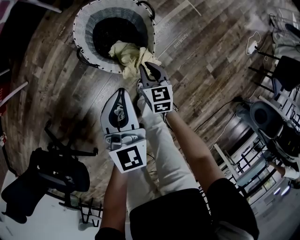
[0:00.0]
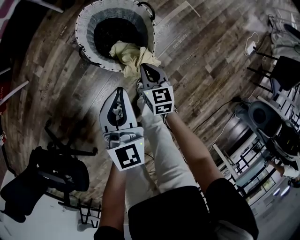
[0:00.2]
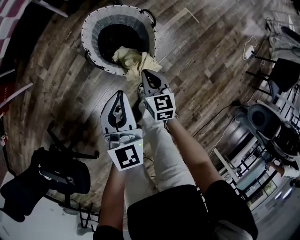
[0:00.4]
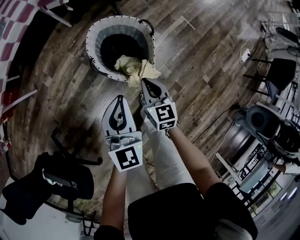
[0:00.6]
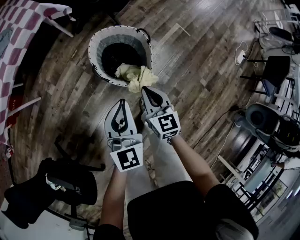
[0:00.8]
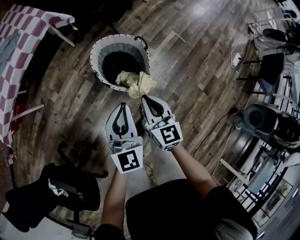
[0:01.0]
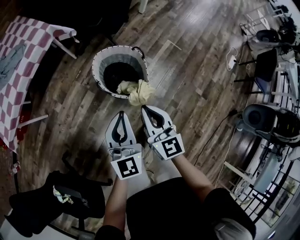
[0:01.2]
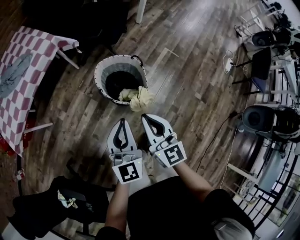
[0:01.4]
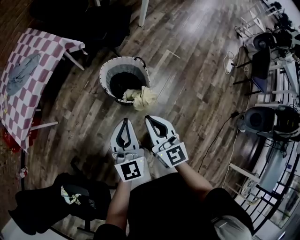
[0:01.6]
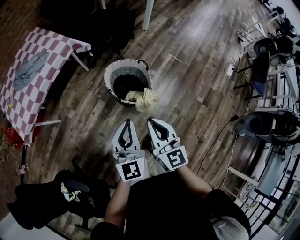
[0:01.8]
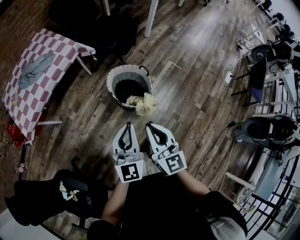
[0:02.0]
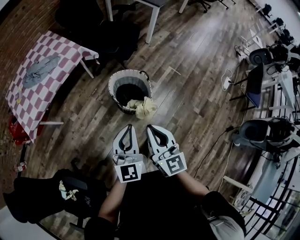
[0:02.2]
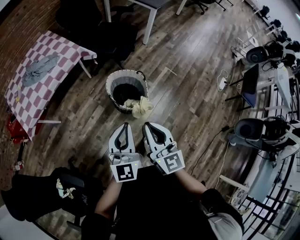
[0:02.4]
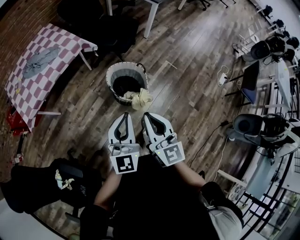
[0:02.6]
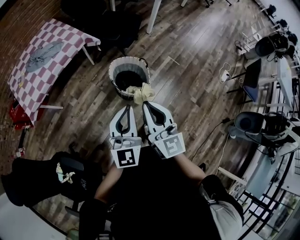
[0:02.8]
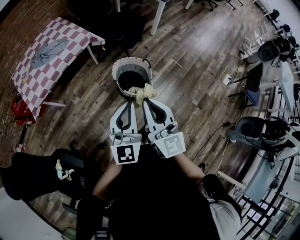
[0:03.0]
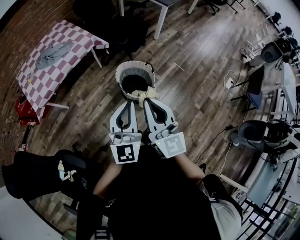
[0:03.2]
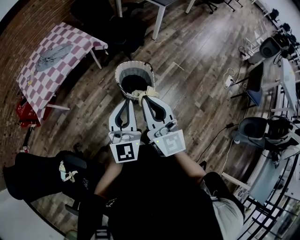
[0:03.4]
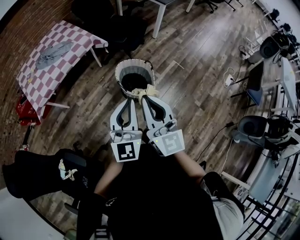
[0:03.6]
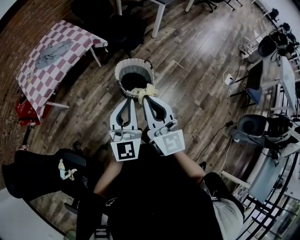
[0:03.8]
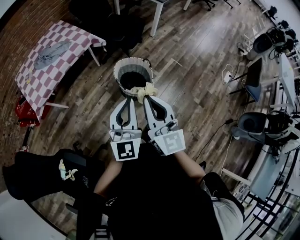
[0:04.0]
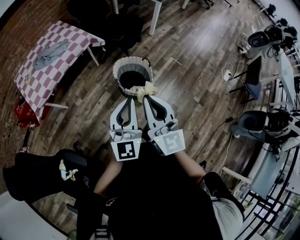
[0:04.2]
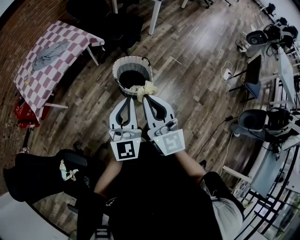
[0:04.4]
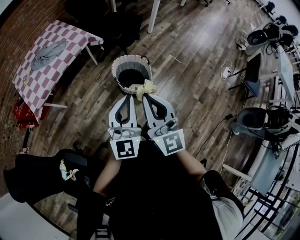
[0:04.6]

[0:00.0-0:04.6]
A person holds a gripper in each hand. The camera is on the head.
0:00.0 to 0:01.6: The left gripper travels upward and backward by roughly 25 cm, while the right gripper goes roughly 40 cm upward, and points its fingers roughly 30 degrees further upward.
0:01.6 to 0:03.0: Both grippers travel together upward, some 20 cm.
0:03.0 to 0:04.6: The grippers make only small movements.

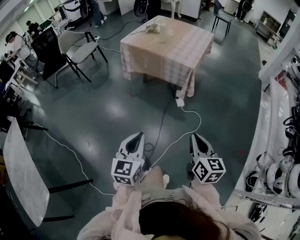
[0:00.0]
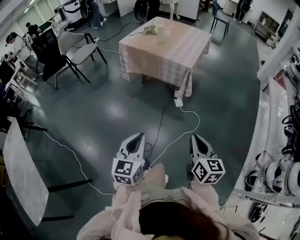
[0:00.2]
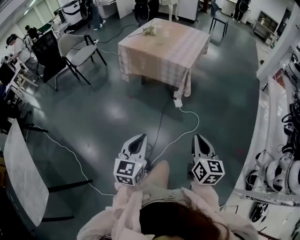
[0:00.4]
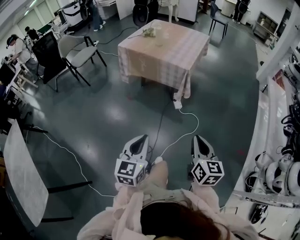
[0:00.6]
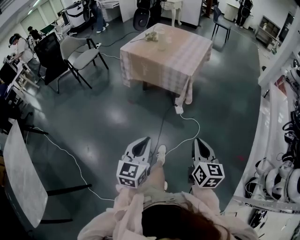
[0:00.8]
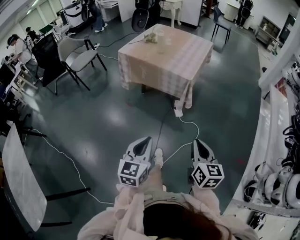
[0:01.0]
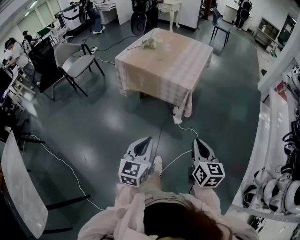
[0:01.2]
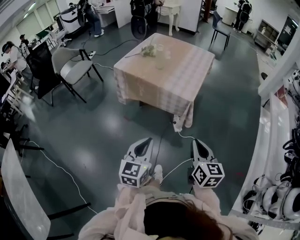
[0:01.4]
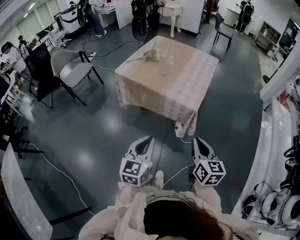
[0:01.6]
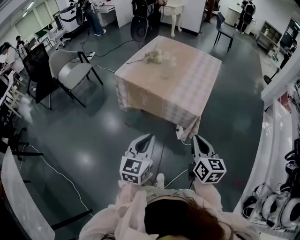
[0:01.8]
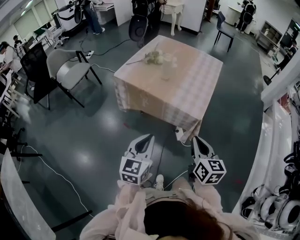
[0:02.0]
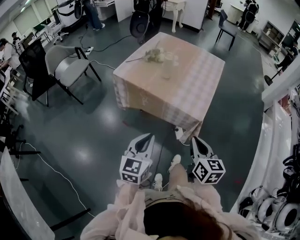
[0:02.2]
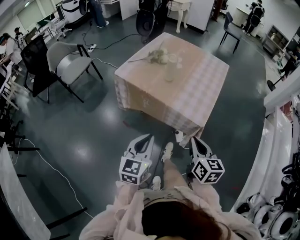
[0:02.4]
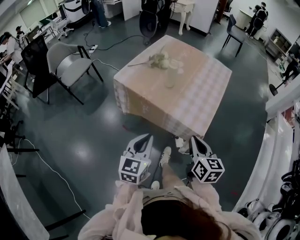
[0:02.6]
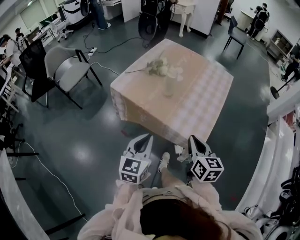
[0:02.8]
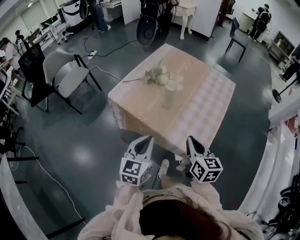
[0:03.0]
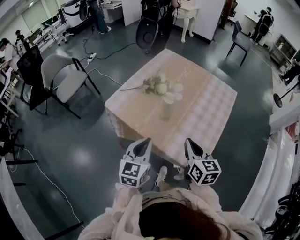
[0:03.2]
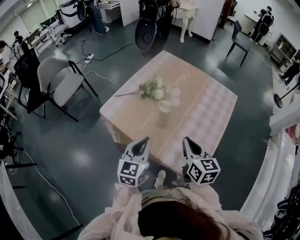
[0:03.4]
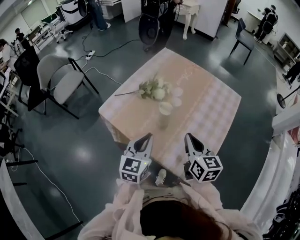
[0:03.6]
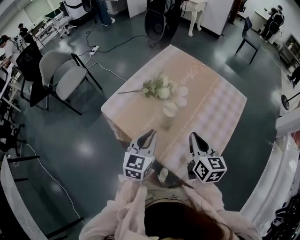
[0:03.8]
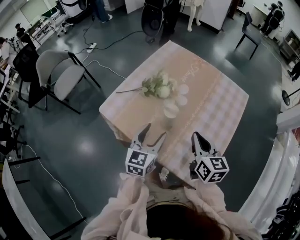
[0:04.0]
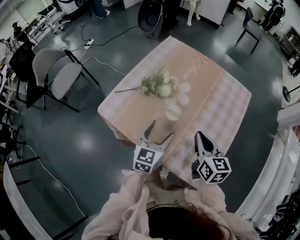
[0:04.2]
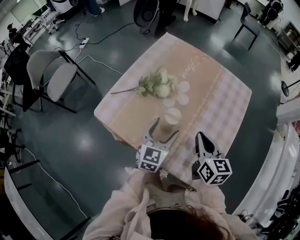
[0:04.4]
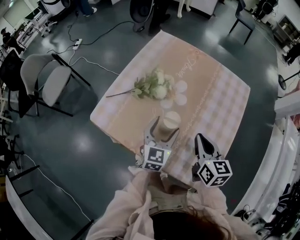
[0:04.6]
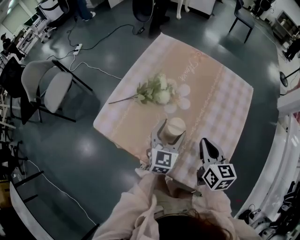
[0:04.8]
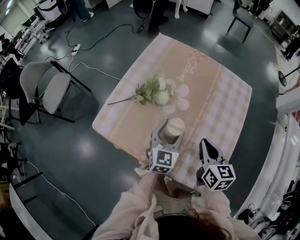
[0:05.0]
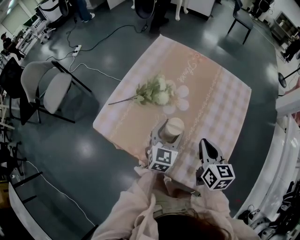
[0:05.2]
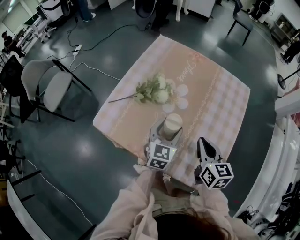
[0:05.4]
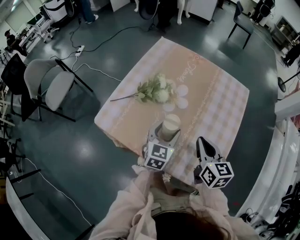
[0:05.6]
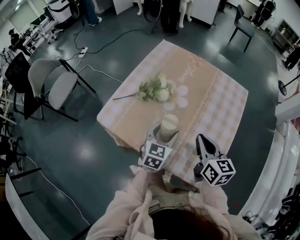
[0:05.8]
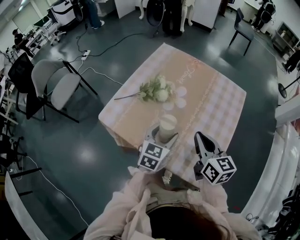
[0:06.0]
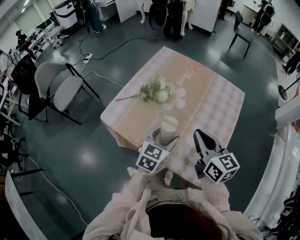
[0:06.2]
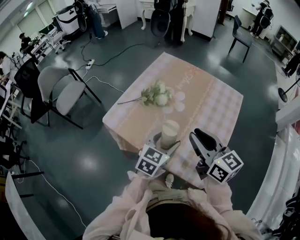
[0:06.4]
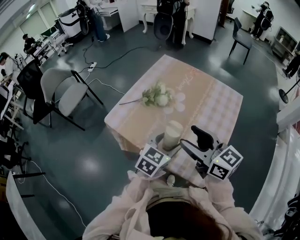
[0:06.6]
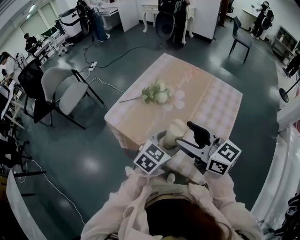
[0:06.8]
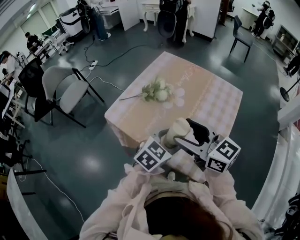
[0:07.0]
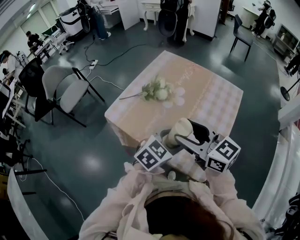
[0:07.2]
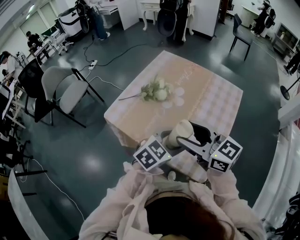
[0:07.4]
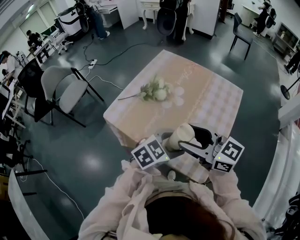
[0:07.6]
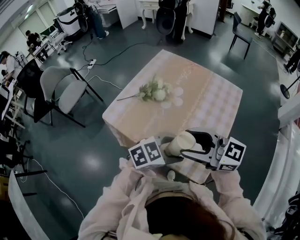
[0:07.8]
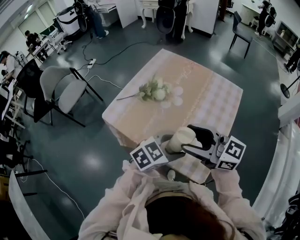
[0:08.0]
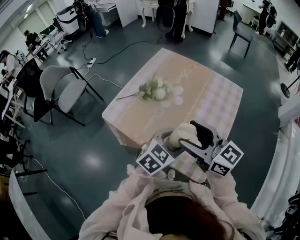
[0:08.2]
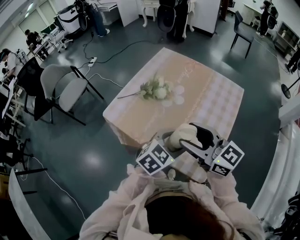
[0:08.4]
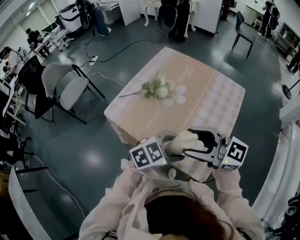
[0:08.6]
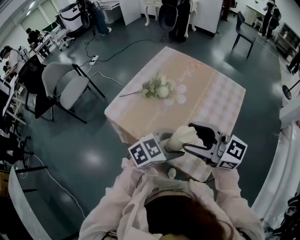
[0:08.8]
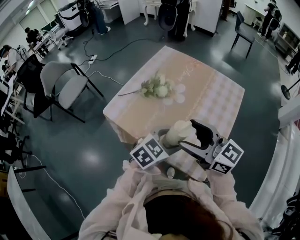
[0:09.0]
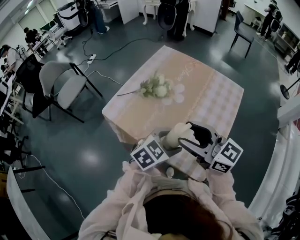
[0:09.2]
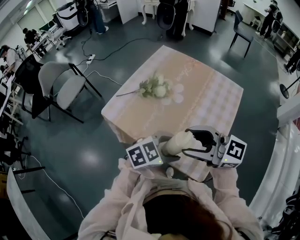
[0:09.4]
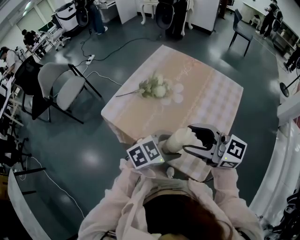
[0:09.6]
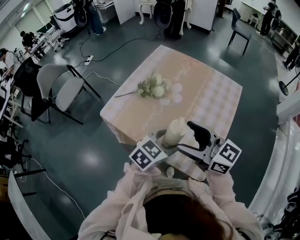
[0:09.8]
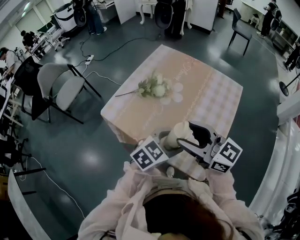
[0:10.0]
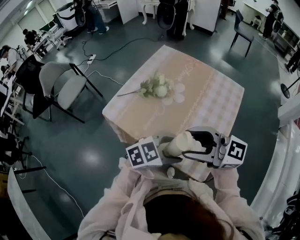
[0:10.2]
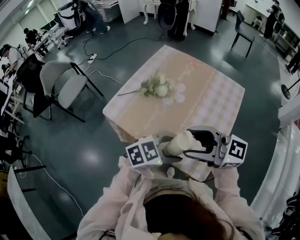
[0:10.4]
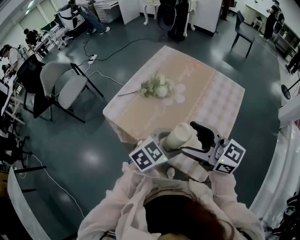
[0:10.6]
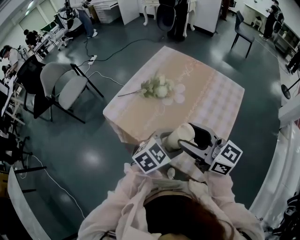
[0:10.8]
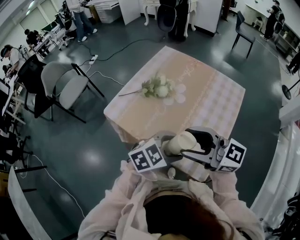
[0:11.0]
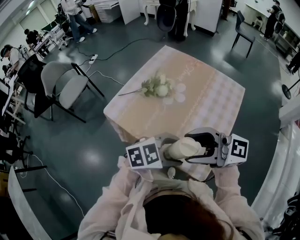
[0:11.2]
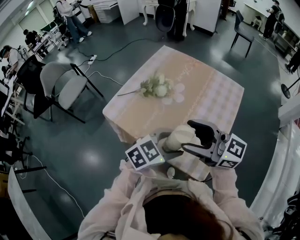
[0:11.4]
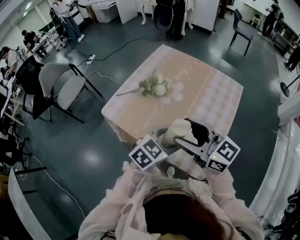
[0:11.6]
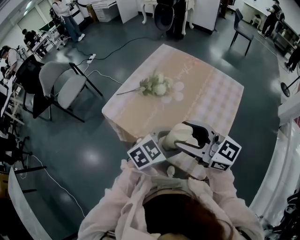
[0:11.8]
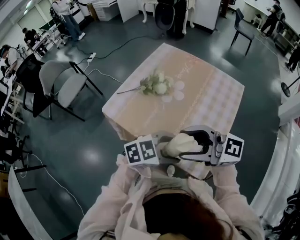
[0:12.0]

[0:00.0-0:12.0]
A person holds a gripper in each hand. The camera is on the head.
0:00.0 to 0:01.6: Both grippers travel together forward, about 30 cm.
0:01.6 to 0:03.0: Both grippers move forward, some 35 cm.
0:03.0 to 0:04.4: Both grippers move forward, approximately 25 cm. The left gripper opens up.
0:04.4 to 0:06.0: The right gripper changes place by some 5 cm.
0:06.0 to 0:07.6: The left gripper ends up roughly 15 cm from where it was, and swivels approximately 30 degrees. The right gripper moves upward, approximately 10 cm, rotates roughly 40 degrees, and opens.
0:07.6 to 0:09.0: The grippers make only small movements.
0:09.0 to 0:10.4: The right gripper turns by some 20 degrees. Meanwhile the left gripper shifts by about 5 cm, and rotates roughly 20 degrees.

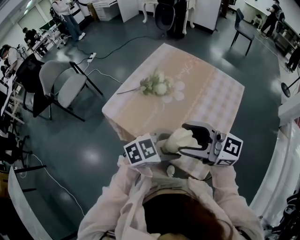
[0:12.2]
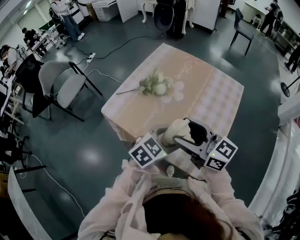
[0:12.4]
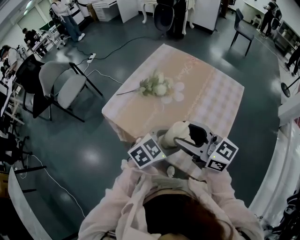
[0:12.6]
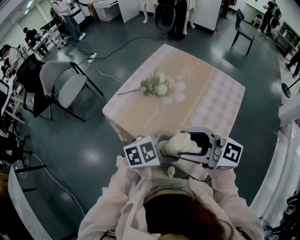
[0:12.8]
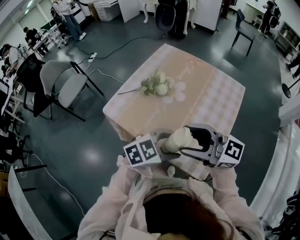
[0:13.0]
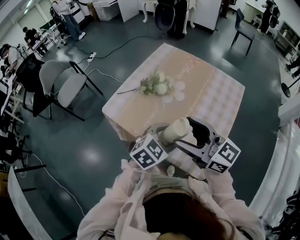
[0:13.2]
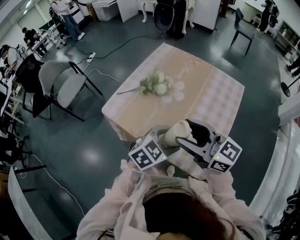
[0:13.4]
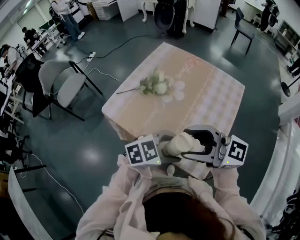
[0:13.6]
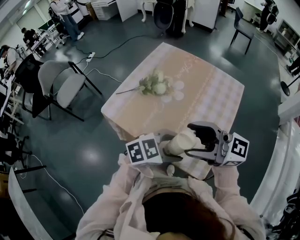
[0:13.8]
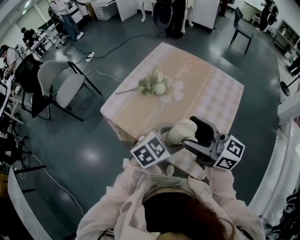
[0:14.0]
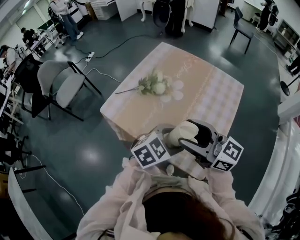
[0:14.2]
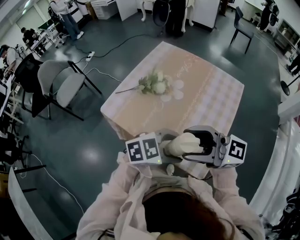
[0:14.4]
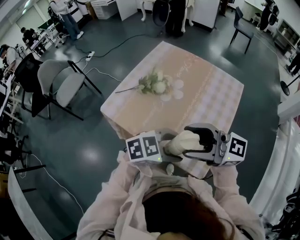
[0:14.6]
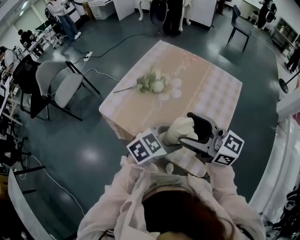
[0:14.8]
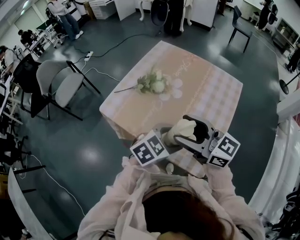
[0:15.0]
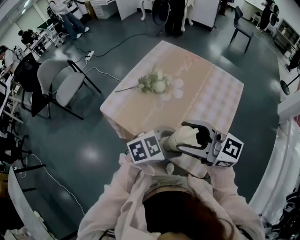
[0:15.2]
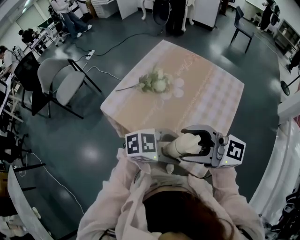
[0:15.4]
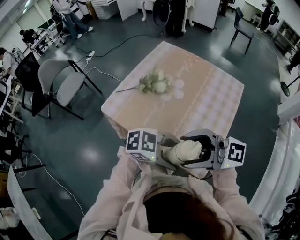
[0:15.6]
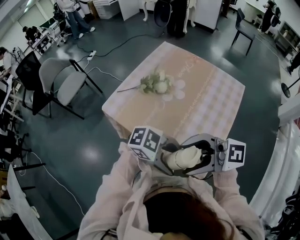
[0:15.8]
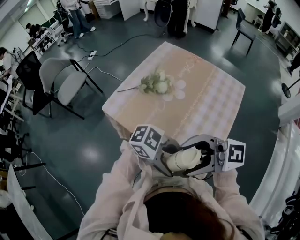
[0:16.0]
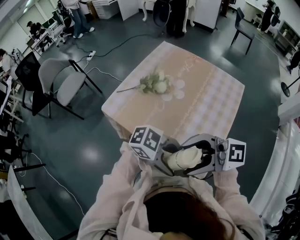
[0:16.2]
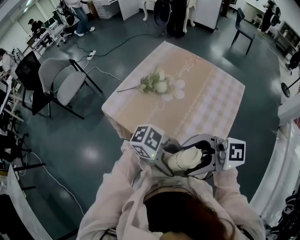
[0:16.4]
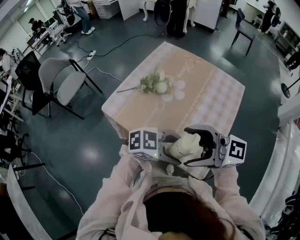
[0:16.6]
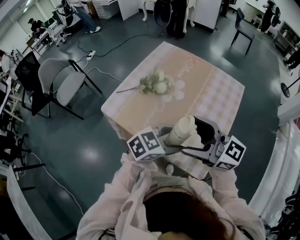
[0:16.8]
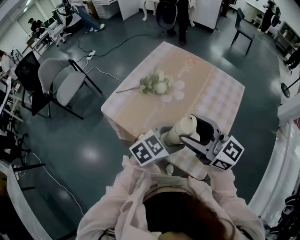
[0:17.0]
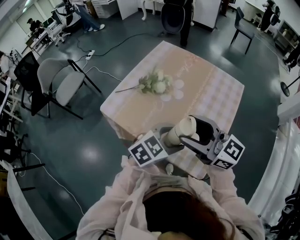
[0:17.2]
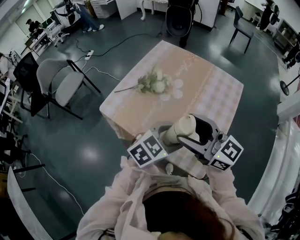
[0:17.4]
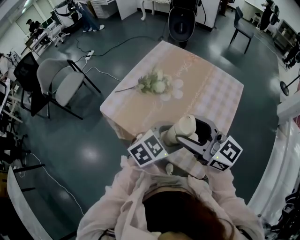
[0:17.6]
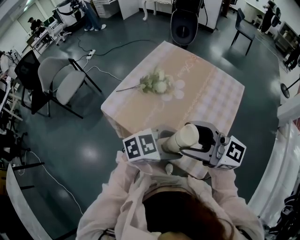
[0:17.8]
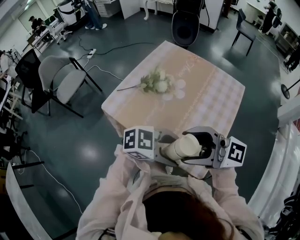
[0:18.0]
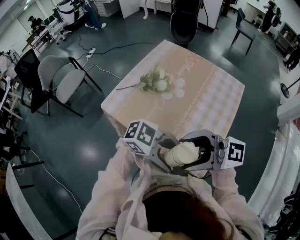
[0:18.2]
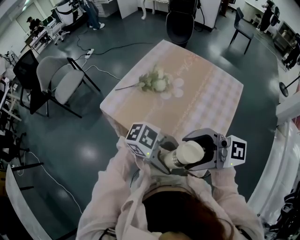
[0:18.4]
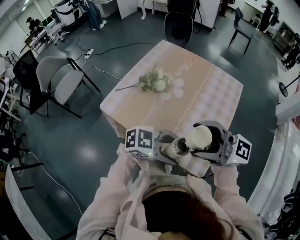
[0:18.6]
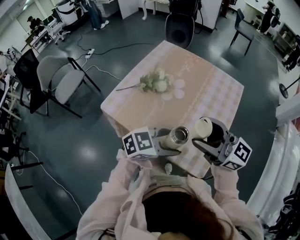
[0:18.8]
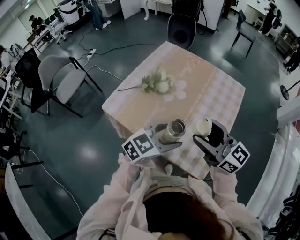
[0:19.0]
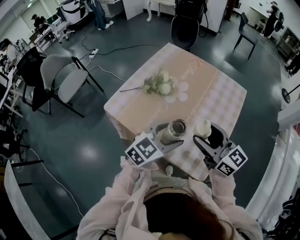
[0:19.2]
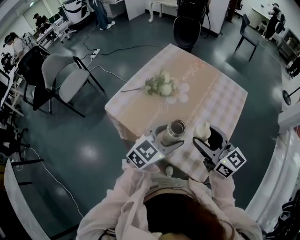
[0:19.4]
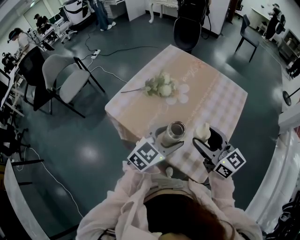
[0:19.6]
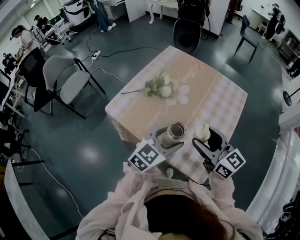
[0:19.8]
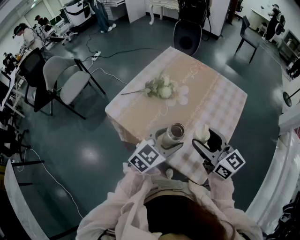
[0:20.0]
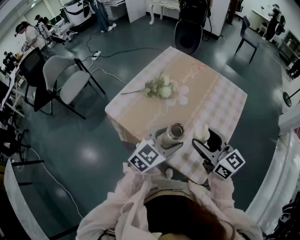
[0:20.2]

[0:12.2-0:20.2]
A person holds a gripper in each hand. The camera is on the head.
0:15.4 to 0:17.0: The left gripper changes place by about 10 cm, and changes its angle by about 30 degrees; the right gripper moves some 5 cm, and swivels some 20 degrees.
0:17.0 to 0:18.6: The left gripper changes its angle by roughly 40 degrees, while the right gripper ends up approximately 10 cm from where it was, and turns by approximately 20 degrees.
0:18.6 to 0:20.2: The left gripper changes place by roughly 10 cm, and changes its angle by roughly 50 degrees. The right gripper moves downward, about 10 cm, and swivels about 40 degrees.
